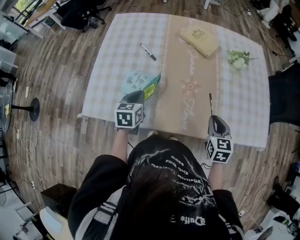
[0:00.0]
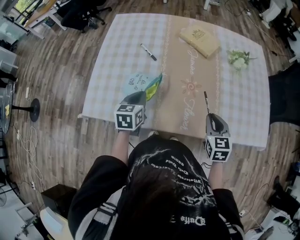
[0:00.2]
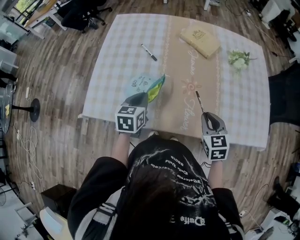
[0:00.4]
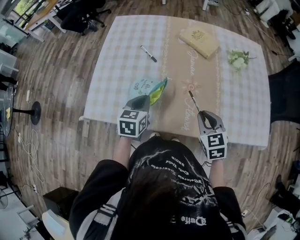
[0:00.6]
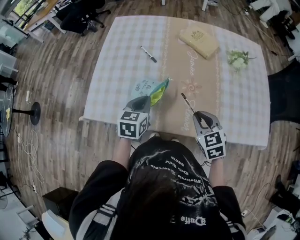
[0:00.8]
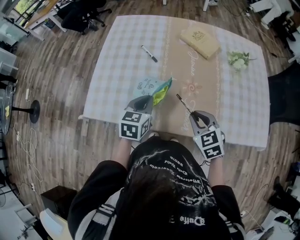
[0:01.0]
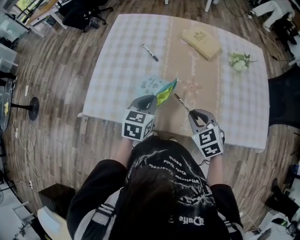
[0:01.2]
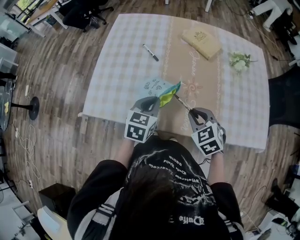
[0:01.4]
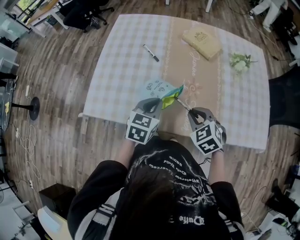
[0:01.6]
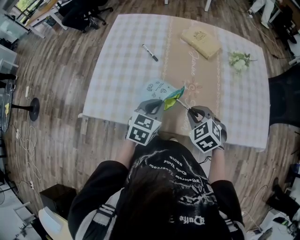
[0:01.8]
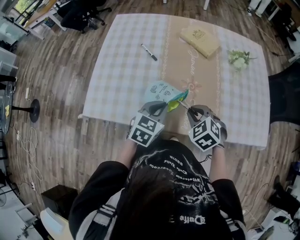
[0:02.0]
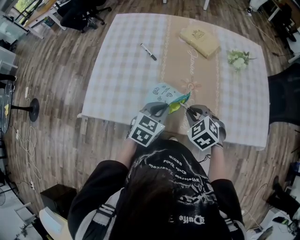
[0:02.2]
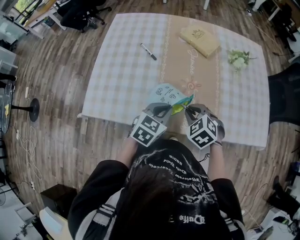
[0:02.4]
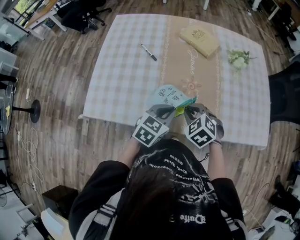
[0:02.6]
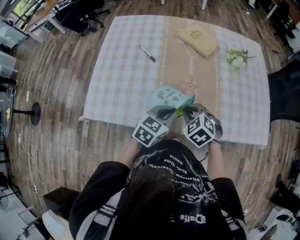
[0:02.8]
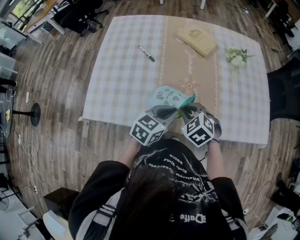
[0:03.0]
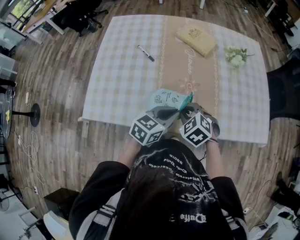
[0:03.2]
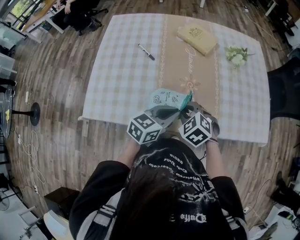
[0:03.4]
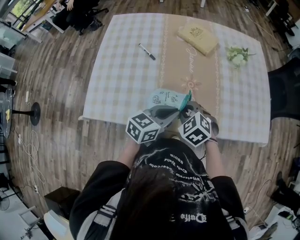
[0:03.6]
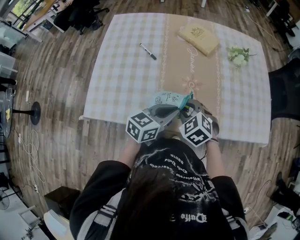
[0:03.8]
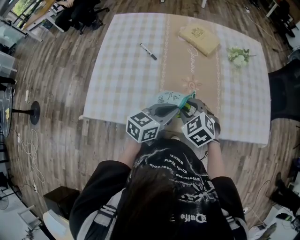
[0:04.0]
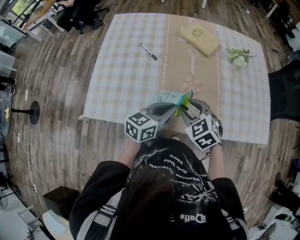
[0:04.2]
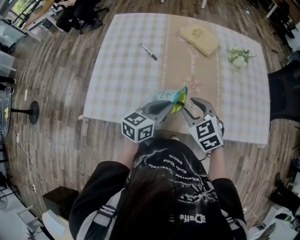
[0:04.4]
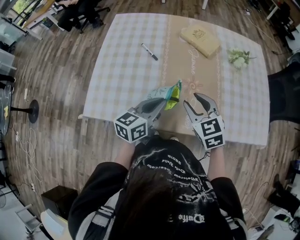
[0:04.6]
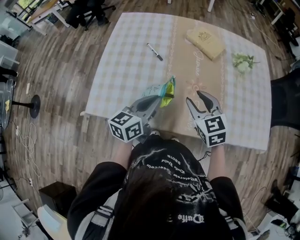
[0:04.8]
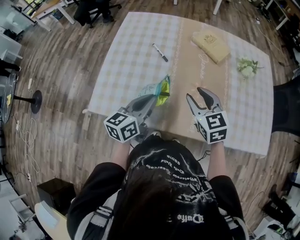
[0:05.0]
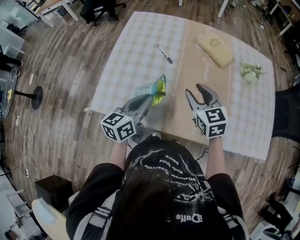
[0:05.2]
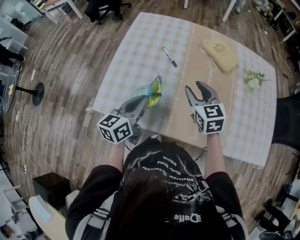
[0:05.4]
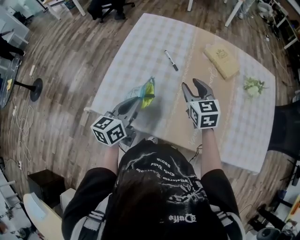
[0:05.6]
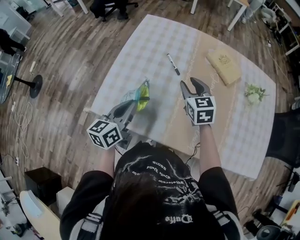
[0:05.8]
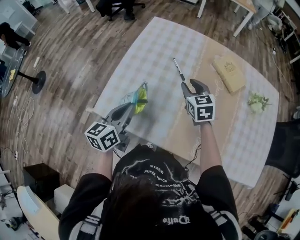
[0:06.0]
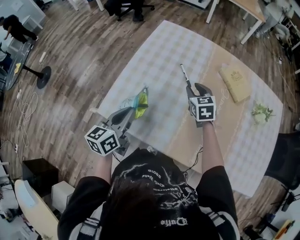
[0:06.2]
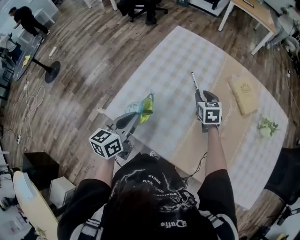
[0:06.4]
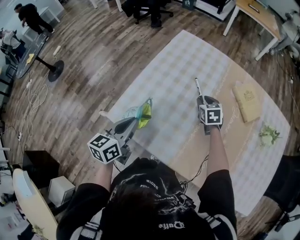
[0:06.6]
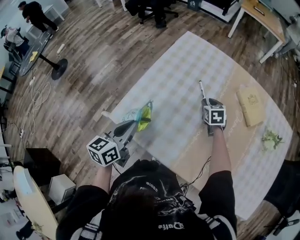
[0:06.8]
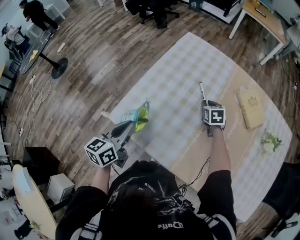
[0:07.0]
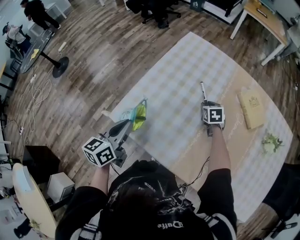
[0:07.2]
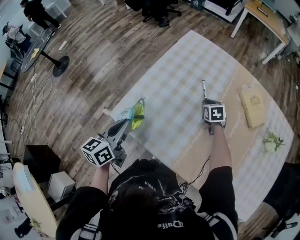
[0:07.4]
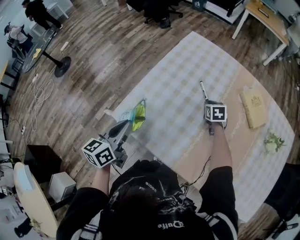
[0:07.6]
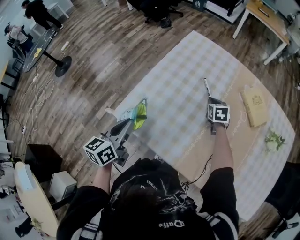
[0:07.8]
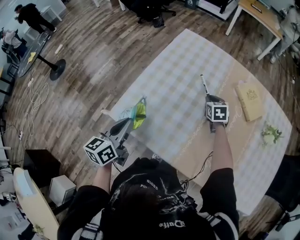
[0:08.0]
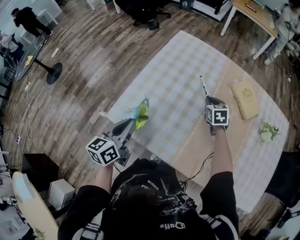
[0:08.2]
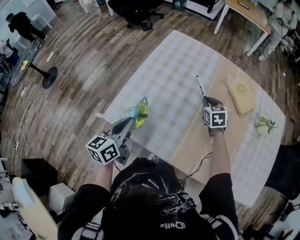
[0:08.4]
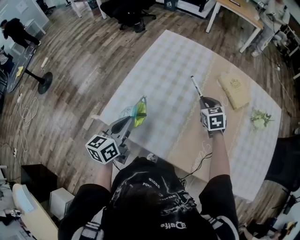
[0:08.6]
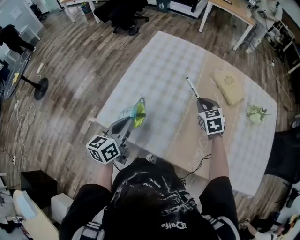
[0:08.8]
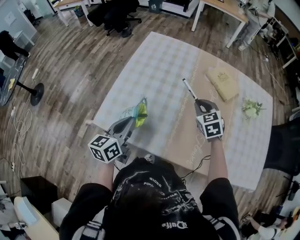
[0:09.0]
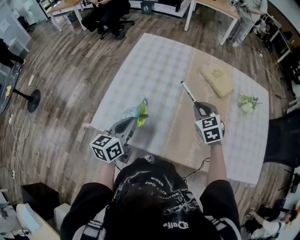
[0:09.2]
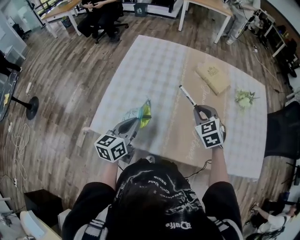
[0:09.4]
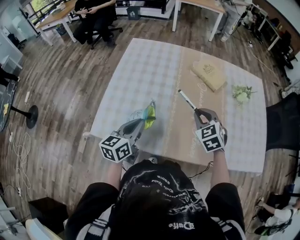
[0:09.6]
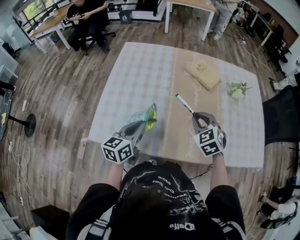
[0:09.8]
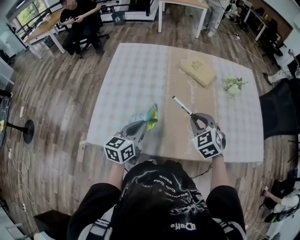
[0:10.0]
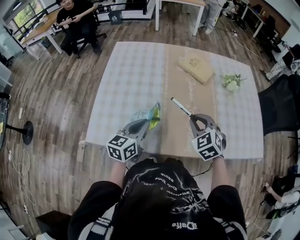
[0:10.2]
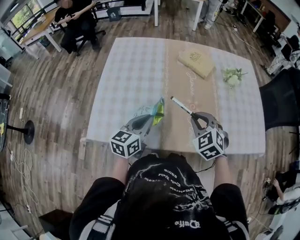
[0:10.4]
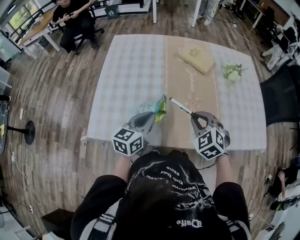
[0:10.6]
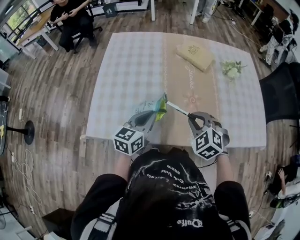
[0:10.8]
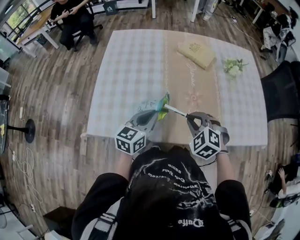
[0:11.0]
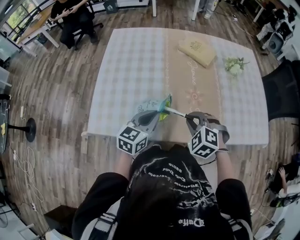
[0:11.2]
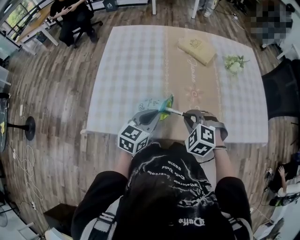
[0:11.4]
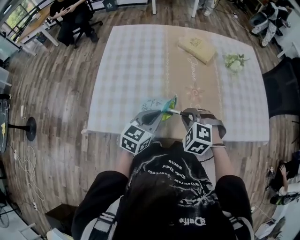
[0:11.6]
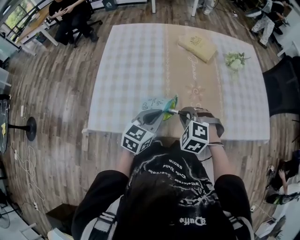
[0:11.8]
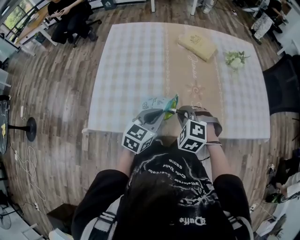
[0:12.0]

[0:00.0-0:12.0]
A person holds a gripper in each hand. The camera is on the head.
0:00.0 to 0:01.6: The left gripper is displaced to the right by approximately 5 cm; the right gripper goes some 15 cm to the left, and rotates about 40 degrees.
0:01.6 to 0:03.0: The left gripper is displaced to the right by some 10 cm, and turns by approximately 20 degrees.
0:03.0 to 0:04.4: The left gripper moves about 5 cm; the right gripper heads upward, covering some 5 cm, and opens.
0:04.4 to 0:06.0: The left gripper travels to the left by roughly 25 cm, and changes its angle by some 40 degrees, while the right gripper moves forward and to the left, some 25 cm.
0:06.0 to 0:07.6: The left gripper goes approximately 10 cm to the left. The right gripper heads downward and forward, covering roughly 15 cm, and rotates about 20 degrees.
0:07.6 to 0:09.0: The right gripper travels upward, backward and to the right by roughly 20 cm. Meanwhile the left gripper shifts about 10 cm to the right.
0:09.0 to 0:10.4: The right gripper travels backward and to the right by approximately 15 cm. The left gripper goes roughly 15 cm to the right, and rotates some 30 degrees.
0:10.4 to 0:12.0: The left gripper ends up approximately 5 cm from where it was. Meanwhile the right gripper heads to the left, downward and backward, covering about 10 cm, and changes its angle by approximately 30 degrees.

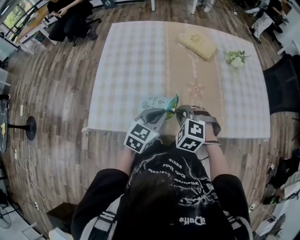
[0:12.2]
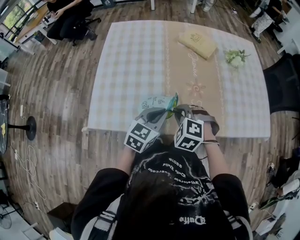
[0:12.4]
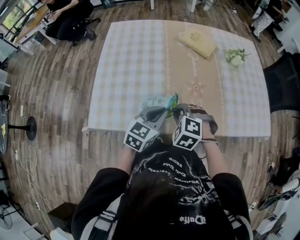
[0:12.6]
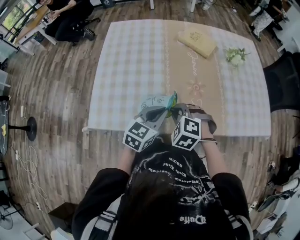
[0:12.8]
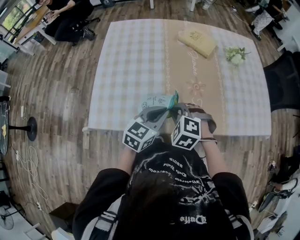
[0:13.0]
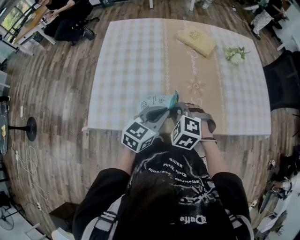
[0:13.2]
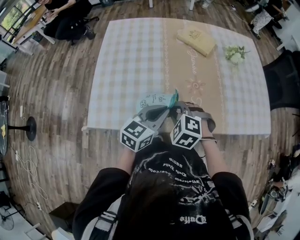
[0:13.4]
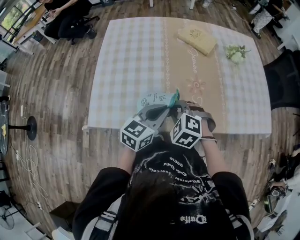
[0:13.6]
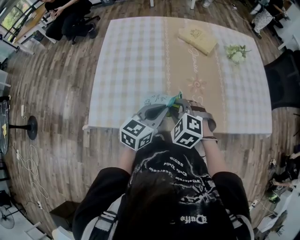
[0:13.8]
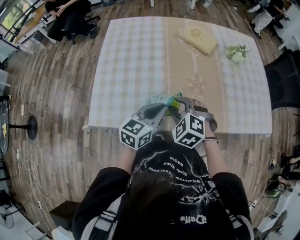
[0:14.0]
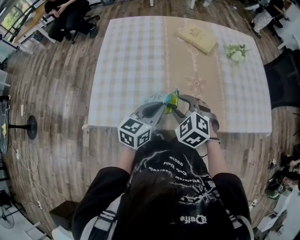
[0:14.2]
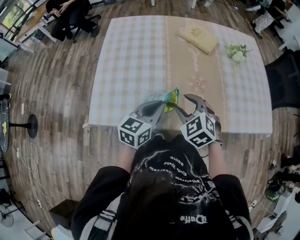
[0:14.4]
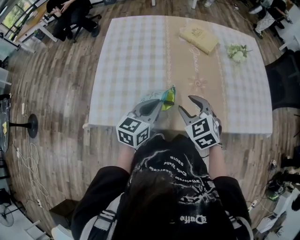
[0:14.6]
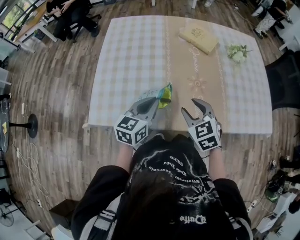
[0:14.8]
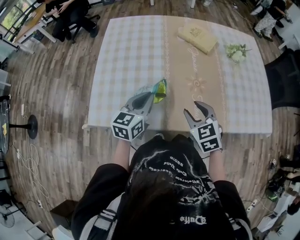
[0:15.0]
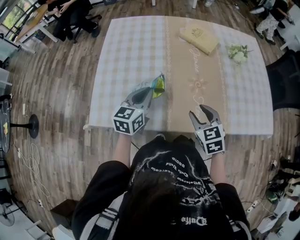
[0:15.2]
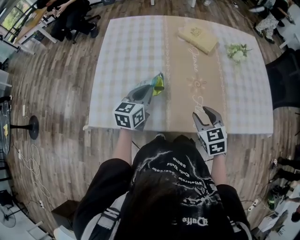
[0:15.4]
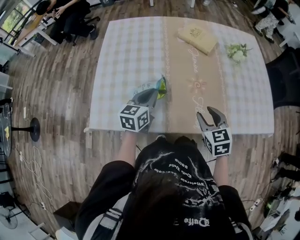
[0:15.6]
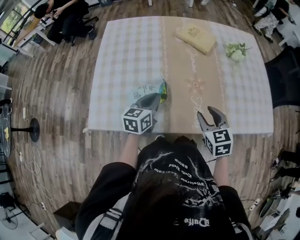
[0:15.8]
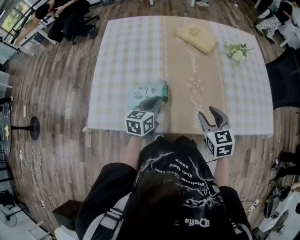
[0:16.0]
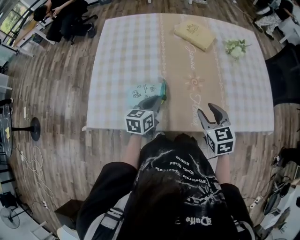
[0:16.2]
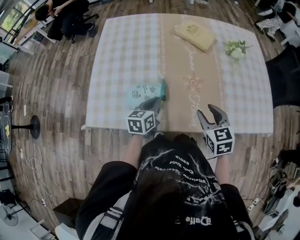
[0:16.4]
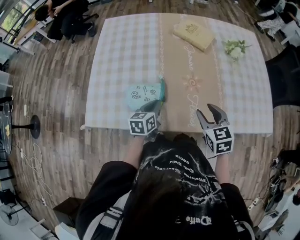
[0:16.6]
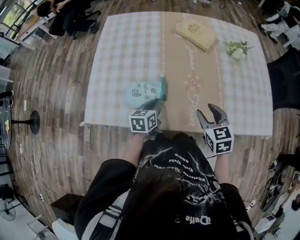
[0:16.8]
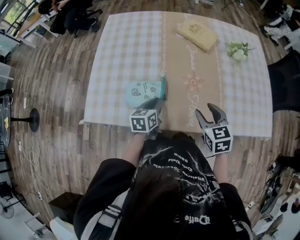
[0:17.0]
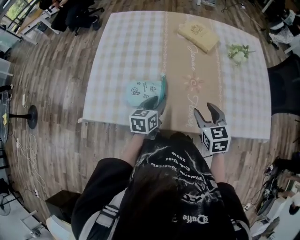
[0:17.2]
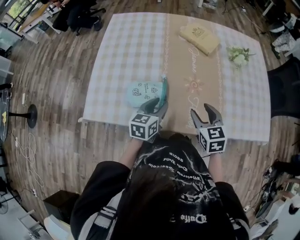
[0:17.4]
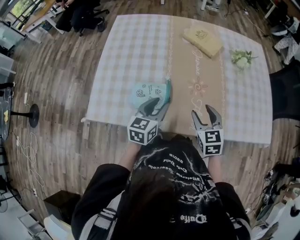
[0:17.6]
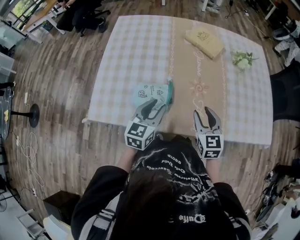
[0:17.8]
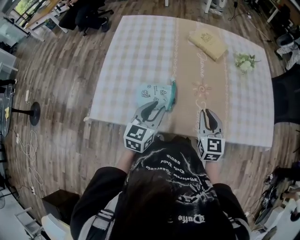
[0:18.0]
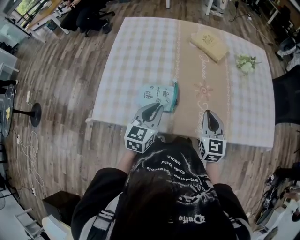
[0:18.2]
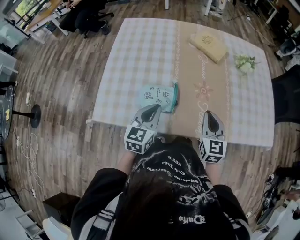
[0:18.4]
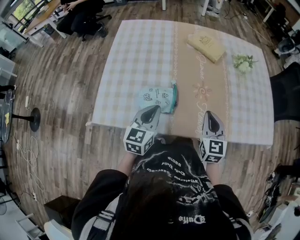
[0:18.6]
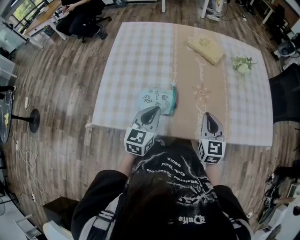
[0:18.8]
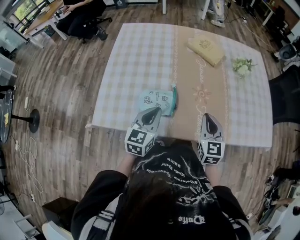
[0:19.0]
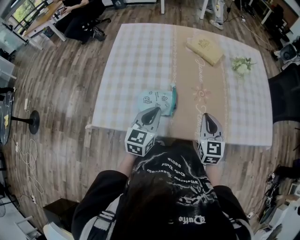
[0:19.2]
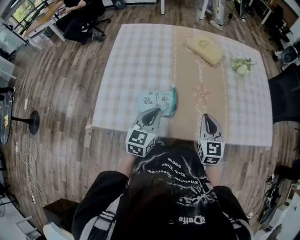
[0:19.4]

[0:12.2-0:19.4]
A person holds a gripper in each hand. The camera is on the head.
0:12.2 to 0:13.6: The grippers make only small movements.
0:13.6 to 0:15.0: The left gripper is displaced to the left by some 5 cm. The right gripper goes some 10 cm to the right, swivels about 40 degrees, and opens its fingers.
0:15.0 to 0:16.6: The left gripper travels downward and to the right by approximately 15 cm, and changes its angle by roughly 20 degrees, while the right gripper moves to the right, some 10 cm.
0:16.6 to 0:18.0: The left gripper moves upward, approximately 10 cm, turns by approximately 20 degrees, and opens up, while the right gripper closes.
0:18.0 to 0:19.4: The left gripper closes up.

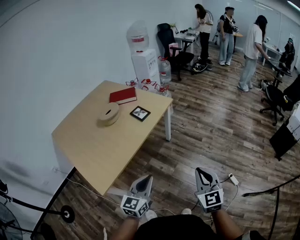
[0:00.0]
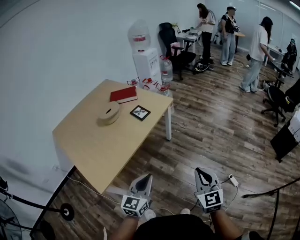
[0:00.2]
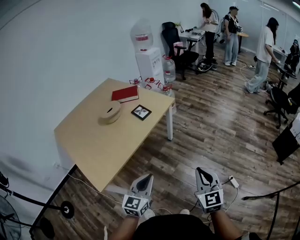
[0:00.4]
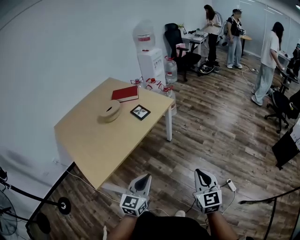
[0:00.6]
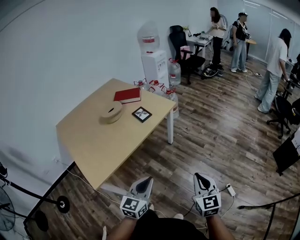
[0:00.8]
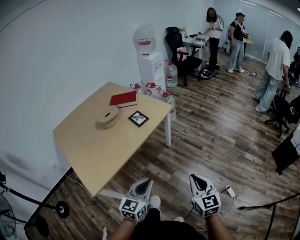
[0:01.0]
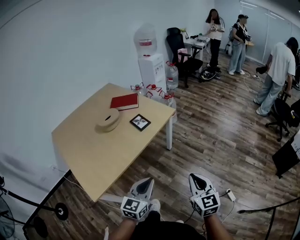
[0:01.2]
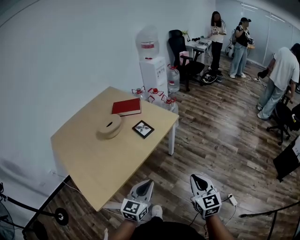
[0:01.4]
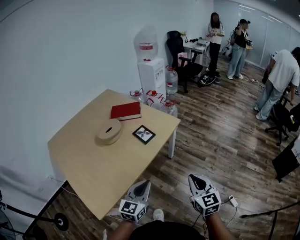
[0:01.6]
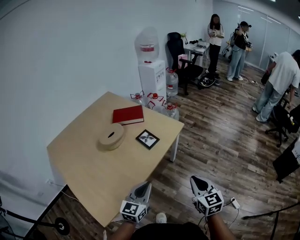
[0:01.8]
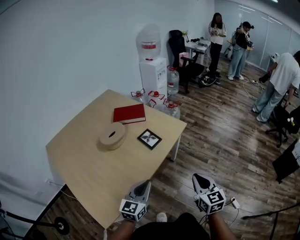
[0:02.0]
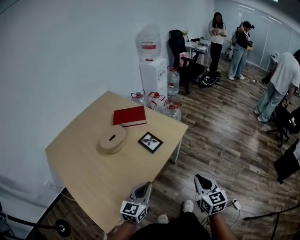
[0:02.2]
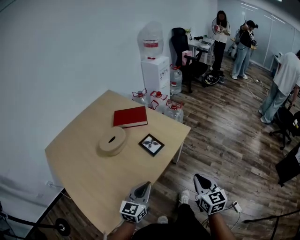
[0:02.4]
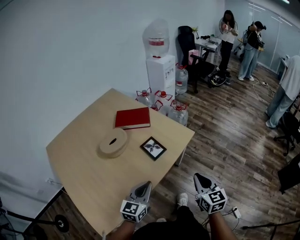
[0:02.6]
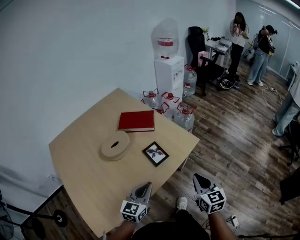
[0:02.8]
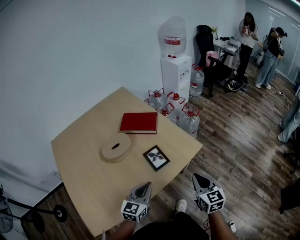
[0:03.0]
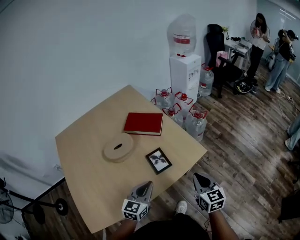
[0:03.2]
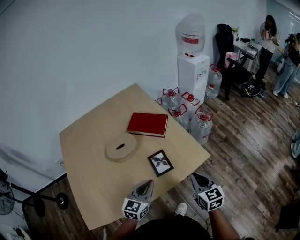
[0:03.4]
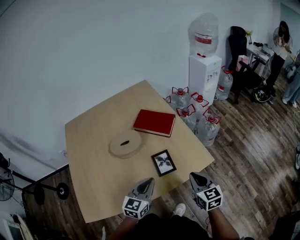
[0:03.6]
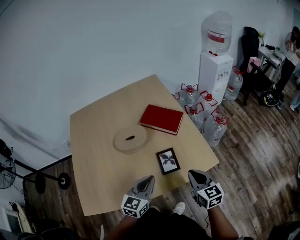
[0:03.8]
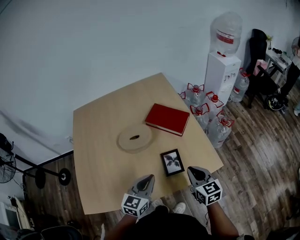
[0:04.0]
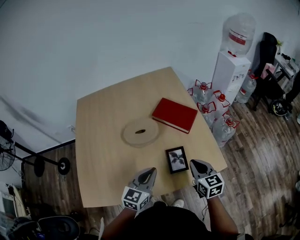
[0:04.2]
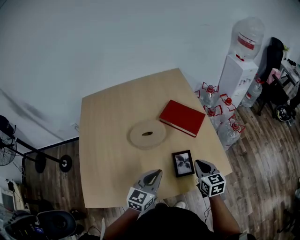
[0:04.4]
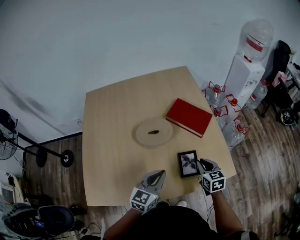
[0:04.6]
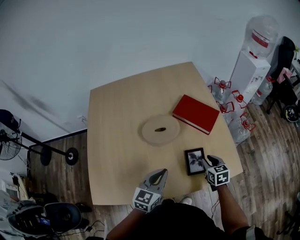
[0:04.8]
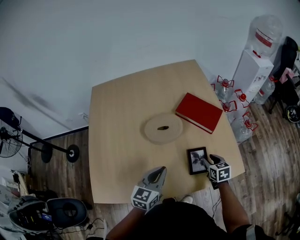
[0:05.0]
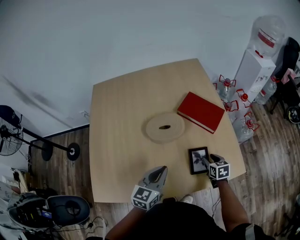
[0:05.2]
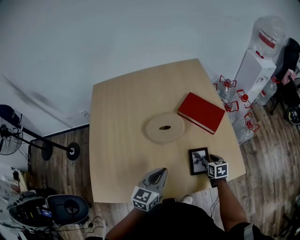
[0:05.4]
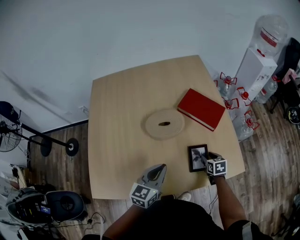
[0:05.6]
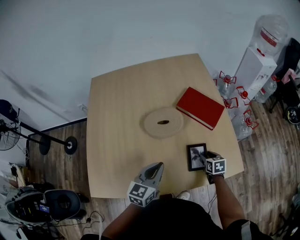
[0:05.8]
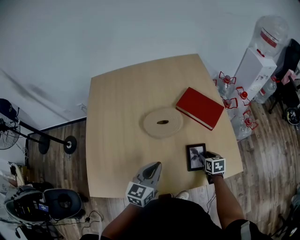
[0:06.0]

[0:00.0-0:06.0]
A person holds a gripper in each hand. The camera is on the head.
0:00.0 to 0:01.6: Both grippers travel together forward, about 20 cm.
0:01.6 to 0:03.0: The two grippers go roughly 30 cm forward.
0:03.0 to 0:04.4: The right gripper changes place by about 25 cm, and rotates some 30 degrees, while the left gripper moves about 10 cm, and turns by some 20 degrees.
0:04.4 to 0:06.0: The right gripper goes about 15 cm downward, swivels some 30 degrees, and opens its fingers, while the left gripper is displaced to the left by some 5 cm.
